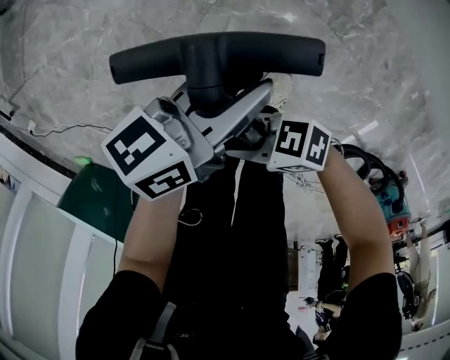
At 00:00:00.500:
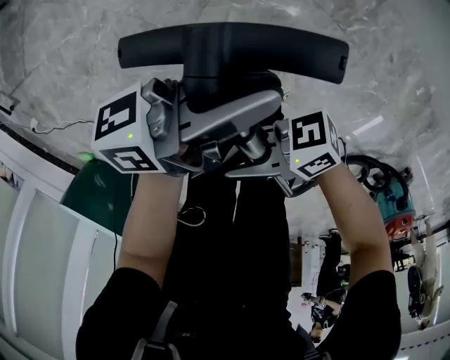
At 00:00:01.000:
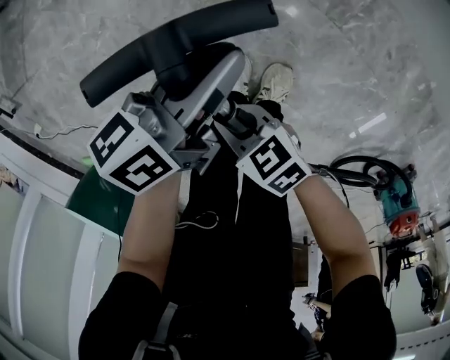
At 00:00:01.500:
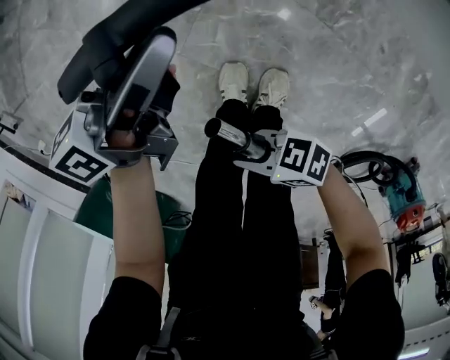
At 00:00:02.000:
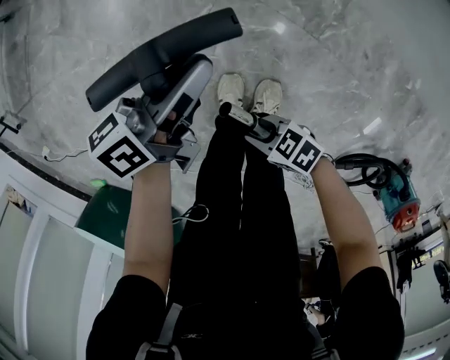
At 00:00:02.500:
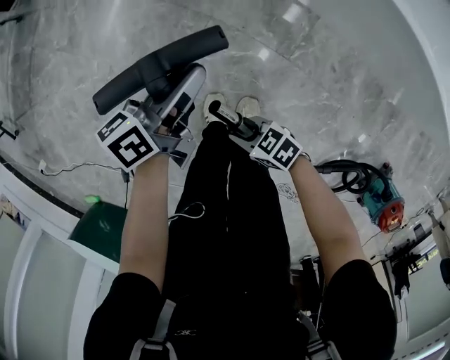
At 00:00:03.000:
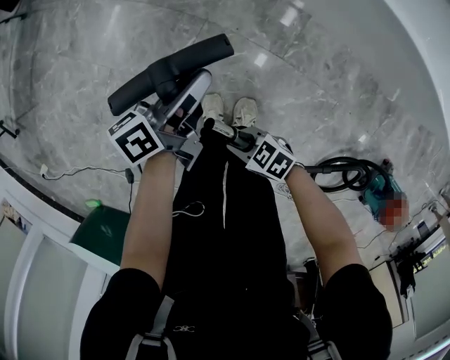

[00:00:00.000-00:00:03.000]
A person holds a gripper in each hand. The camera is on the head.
00:00:00.000 to 00:00:01.500: The left gripper moves up and down over some 5 cm, changing direction 2 times; the right gripper swings up and down, roughly 10 cm each way, with 2 reversals.
00:00:01.500 to 00:00:03.000: The right gripper changes place by about 10 cm, and turns by approximately 30 degrees, while the left gripper heads upward, covering about 10 cm.

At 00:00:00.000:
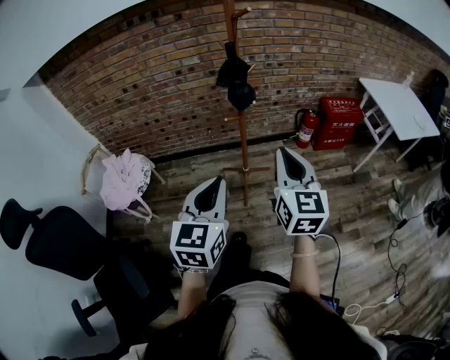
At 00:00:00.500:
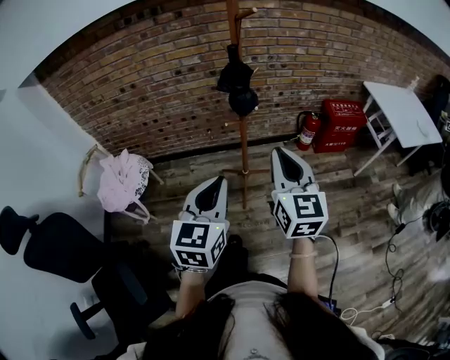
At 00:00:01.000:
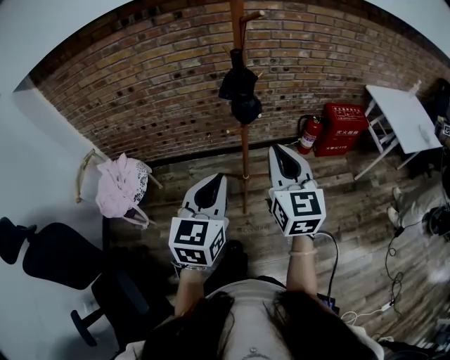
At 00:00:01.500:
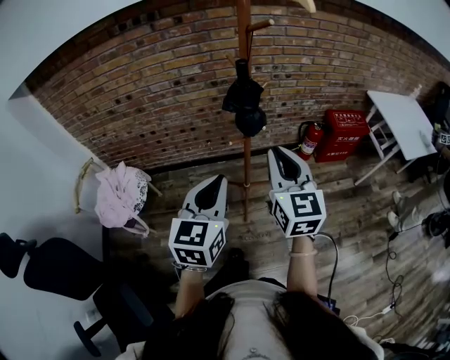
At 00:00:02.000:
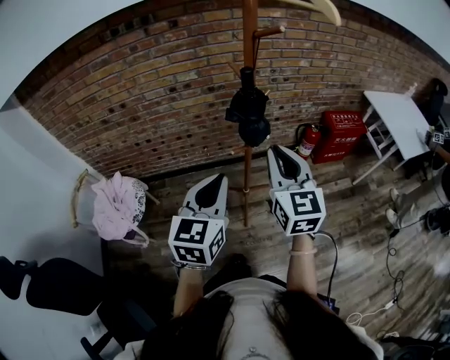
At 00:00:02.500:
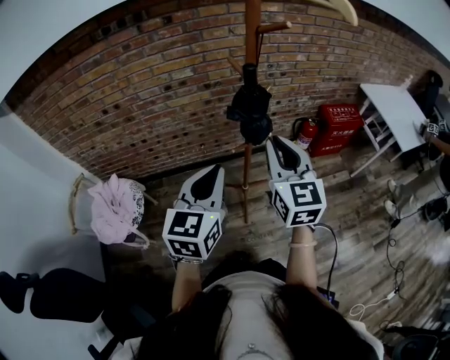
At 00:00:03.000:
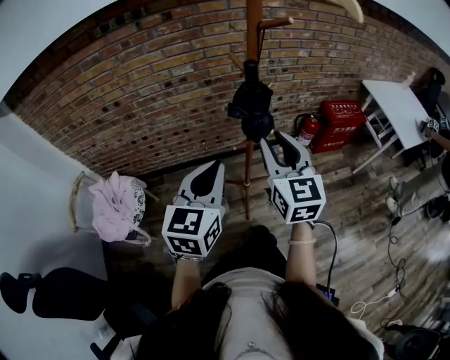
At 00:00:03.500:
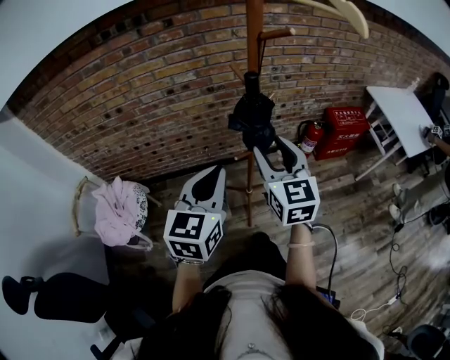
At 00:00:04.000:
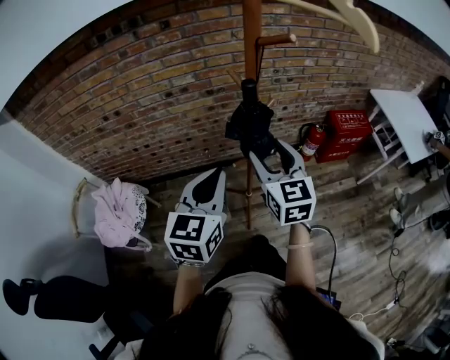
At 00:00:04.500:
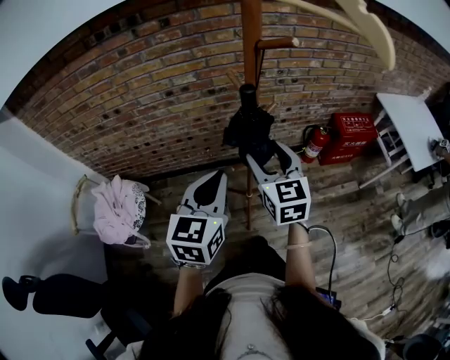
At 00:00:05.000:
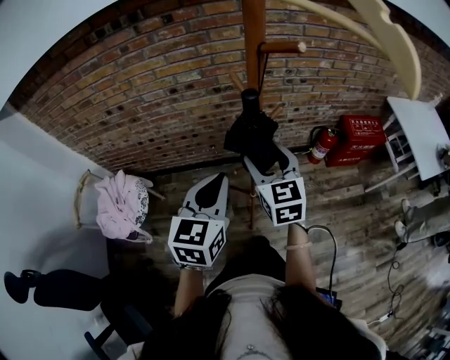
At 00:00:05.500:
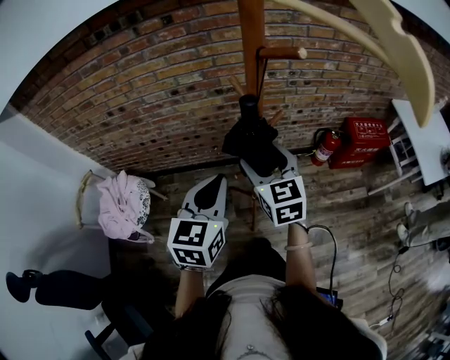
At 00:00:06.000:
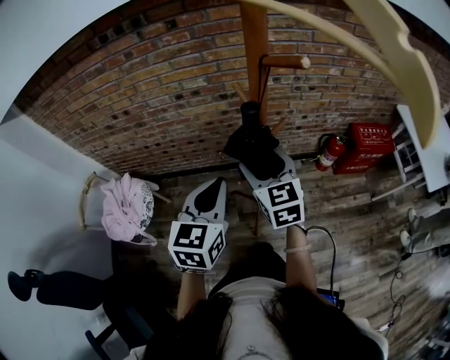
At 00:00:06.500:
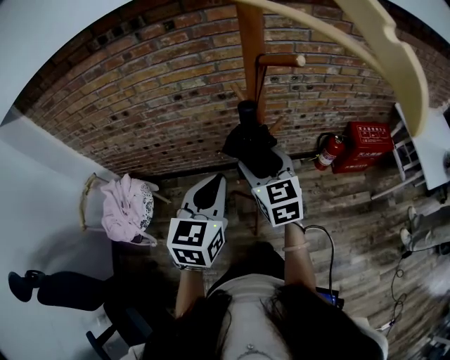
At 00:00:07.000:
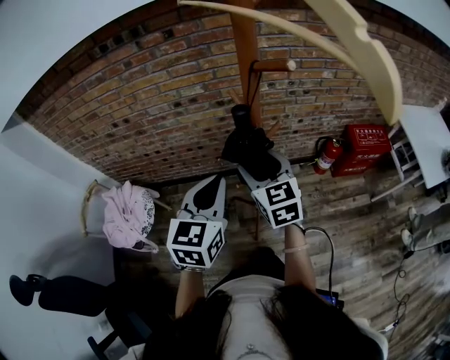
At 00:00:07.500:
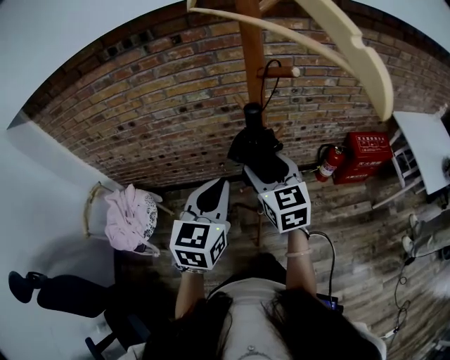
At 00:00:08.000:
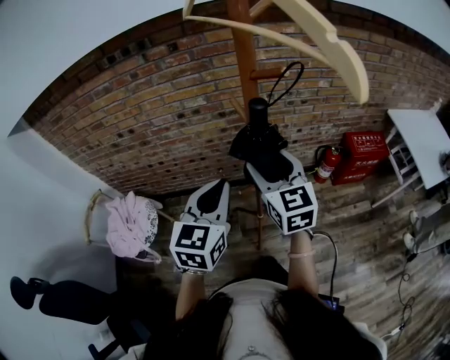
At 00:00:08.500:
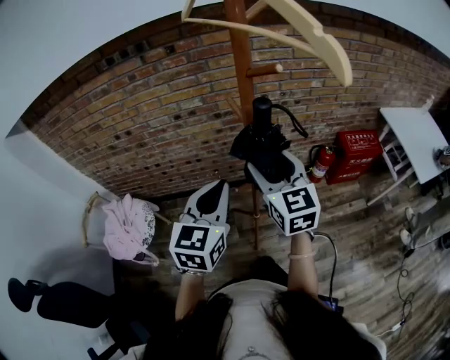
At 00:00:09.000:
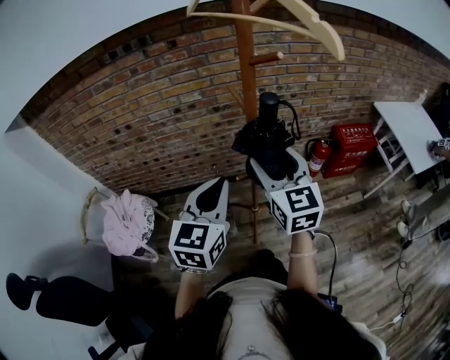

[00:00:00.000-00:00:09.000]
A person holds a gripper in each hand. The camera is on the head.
00:00:00.000 to 00:00:02.000: The right gripper is displaced forward and to the left by about 20 cm; the left gripper moves forward, roughly 20 cm.
00:00:02.000 to 00:00:04.500: The left gripper shifts approximately 10 cm forward; the right gripper goes about 15 cm forward and downward, and opens its fingers.
00:00:04.500 to 00:00:07.000: The right gripper moves forward, approximately 5 cm.
00:00:07.000 to 00:00:09.000: The left gripper travels backward by approximately 10 cm, while the right gripper heads backward and upward, covering approximately 15 cm.

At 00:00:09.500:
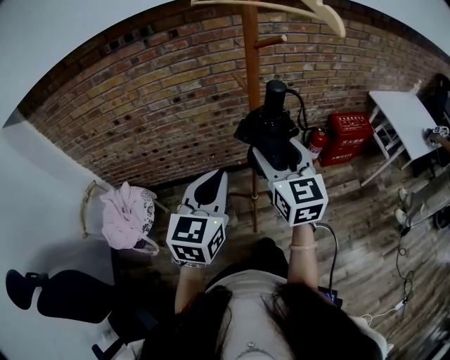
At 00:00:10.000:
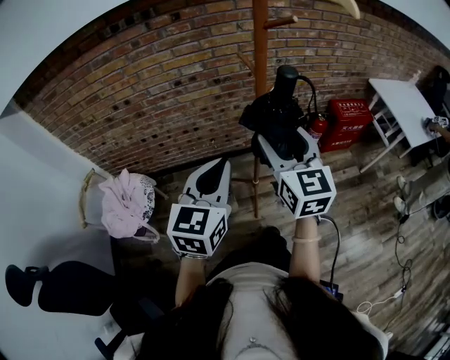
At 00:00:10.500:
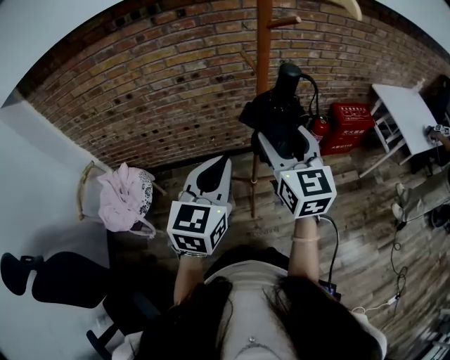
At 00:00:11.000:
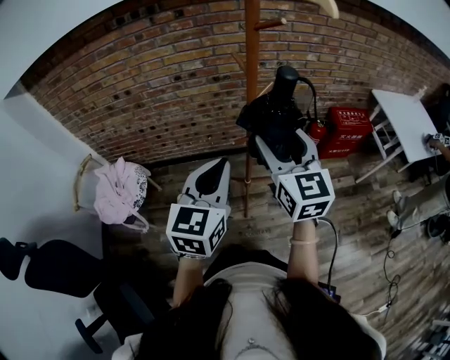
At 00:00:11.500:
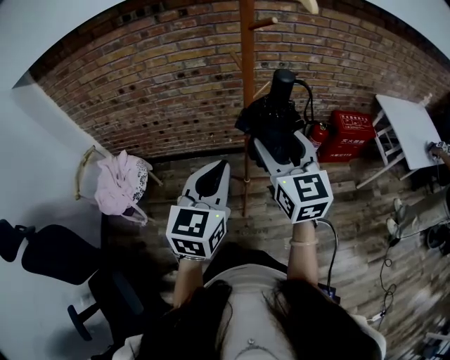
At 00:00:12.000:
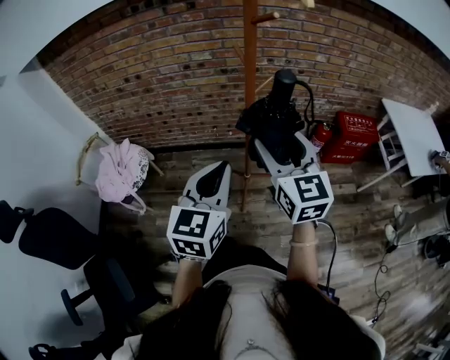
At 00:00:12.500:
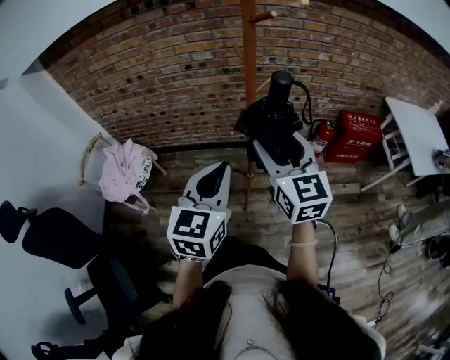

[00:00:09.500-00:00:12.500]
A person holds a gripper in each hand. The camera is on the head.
00:00:09.500 to 00:00:11.000: There are only small adjustments of the grippers.
00:00:11.000 to 00:00:12.500: The left gripper shifts by some 5 cm.

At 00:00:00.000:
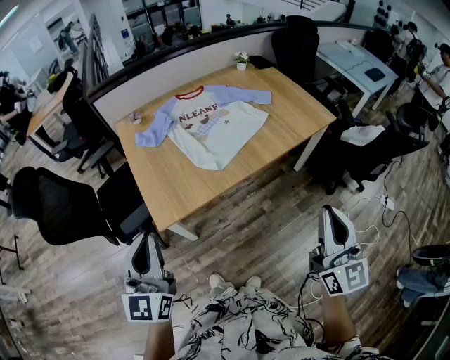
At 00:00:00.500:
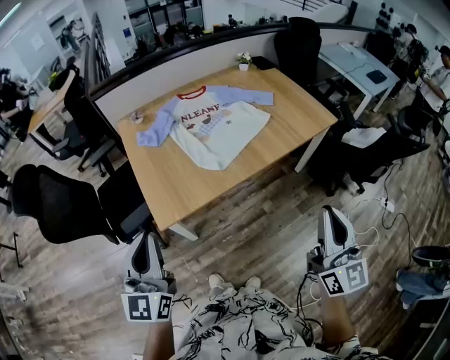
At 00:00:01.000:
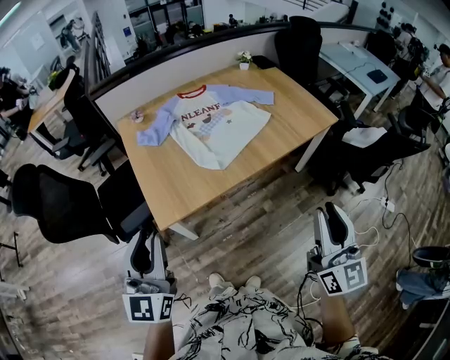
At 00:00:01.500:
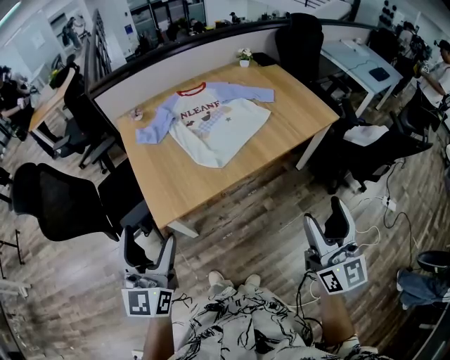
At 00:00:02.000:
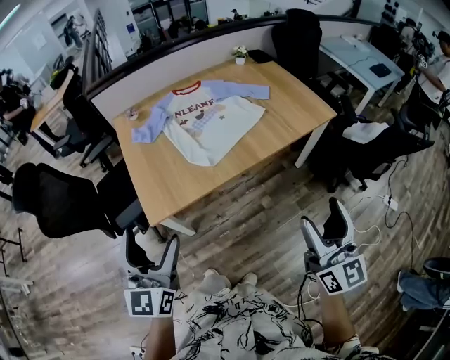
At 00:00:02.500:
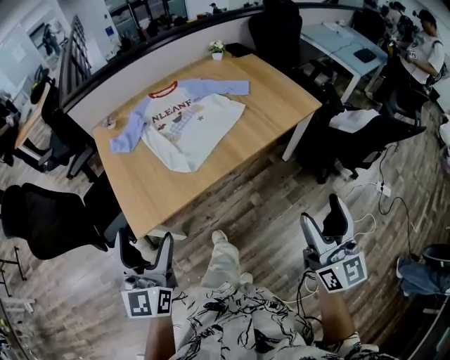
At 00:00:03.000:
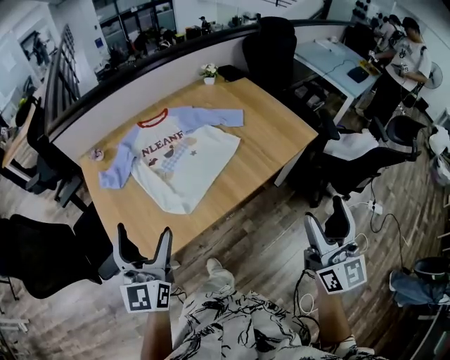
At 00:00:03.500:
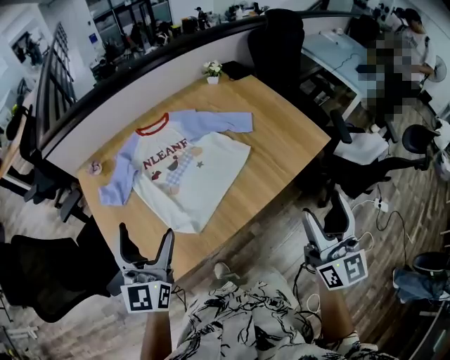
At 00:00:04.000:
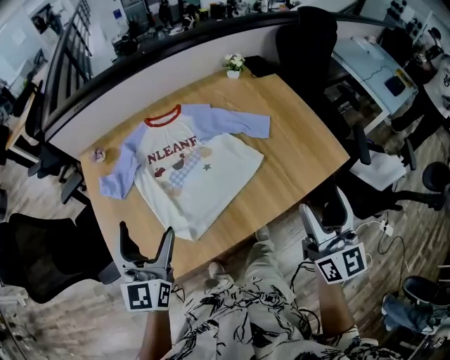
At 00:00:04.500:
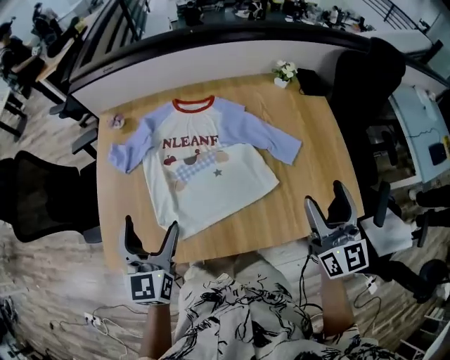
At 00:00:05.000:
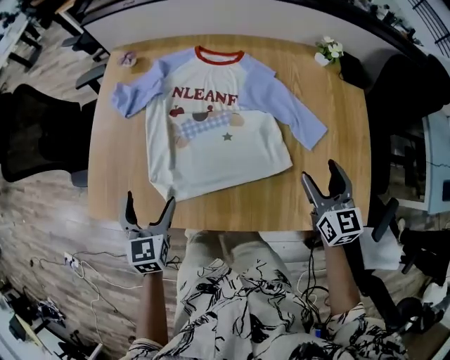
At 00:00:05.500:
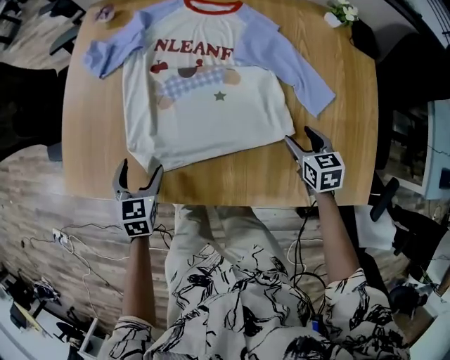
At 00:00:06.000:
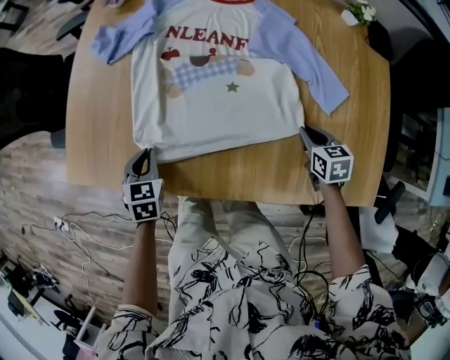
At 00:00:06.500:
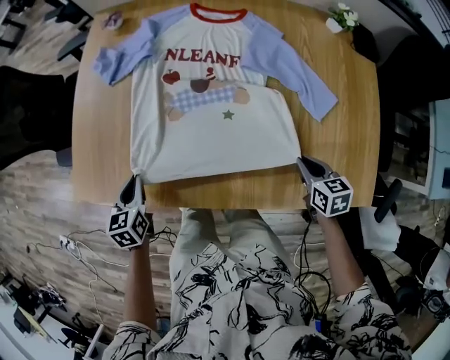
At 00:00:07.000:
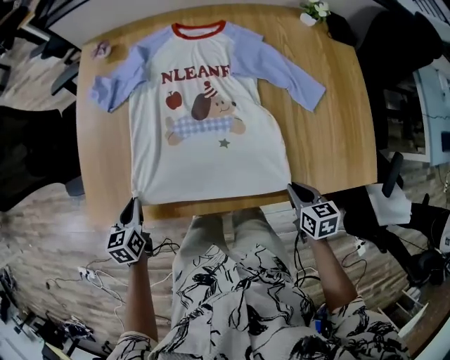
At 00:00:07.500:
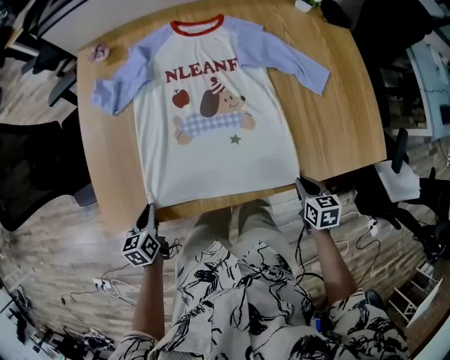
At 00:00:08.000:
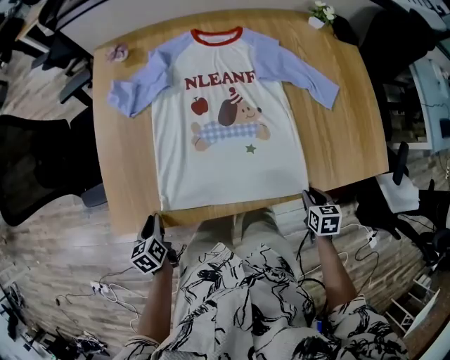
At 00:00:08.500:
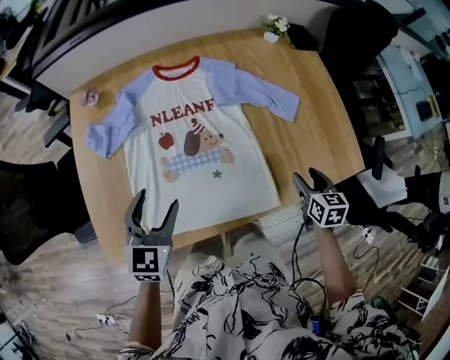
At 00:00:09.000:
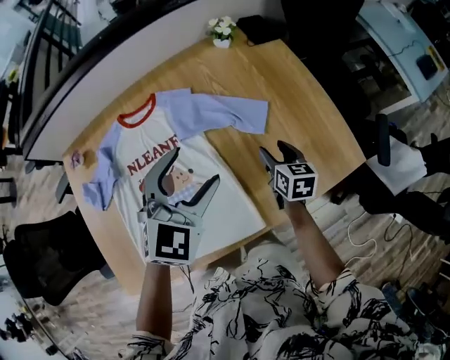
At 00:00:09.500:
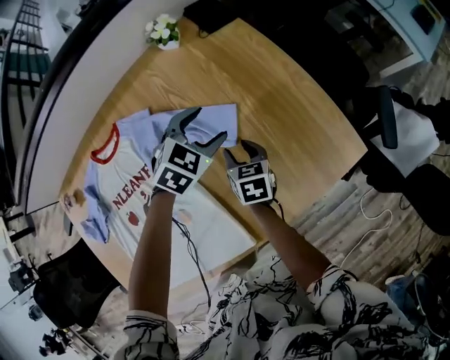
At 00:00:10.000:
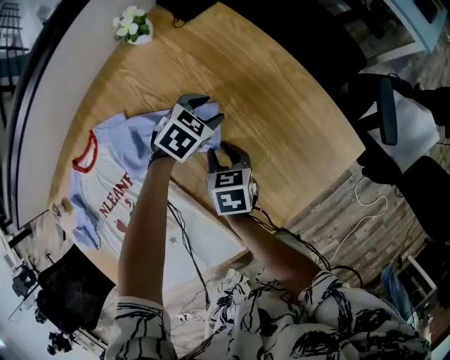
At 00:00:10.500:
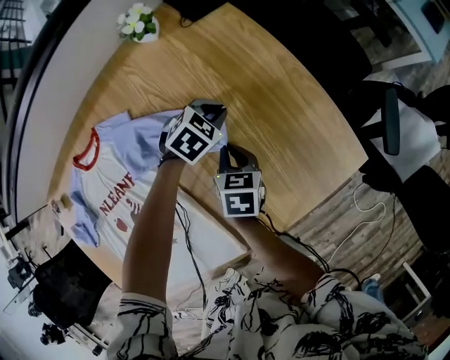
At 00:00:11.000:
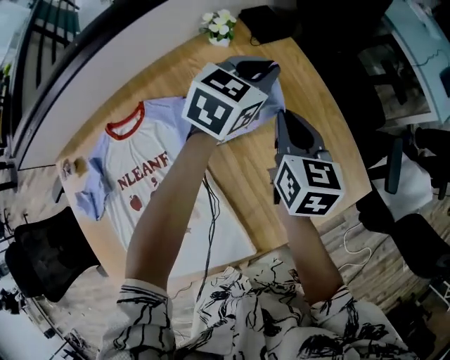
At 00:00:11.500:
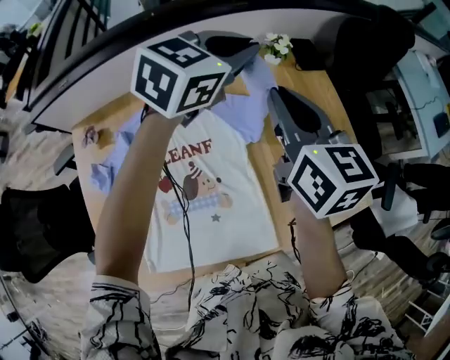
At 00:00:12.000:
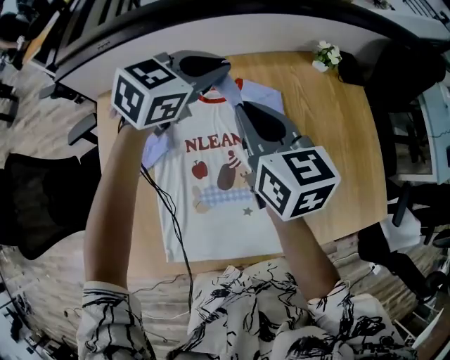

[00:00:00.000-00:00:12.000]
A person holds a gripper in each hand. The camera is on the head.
00:00:00.000 to 00:00:02.000: The right gripper opens up. The left gripper moves to the right, some 5 cm, and opens.
00:00:02.000 to 00:00:04.000: The two grippers go about 40 cm forward.
00:00:04.000 to 00:00:06.000: Both grippers travel together downward, approximately 40 cm. The right gripper tips its fingers downward by about 60 degrees, and closes up; the left gripper tips its fingers downward by approximately 50 degrees, and closes its fingers.
00:00:06.000 to 00:00:08.000: The right gripper travels backward and to the left by some 20 cm, and rotates approximately 30 degrees. The left gripper shifts about 20 cm to the left, and changes its angle by roughly 30 degrees.
00:00:08.000 to 00:00:10.000: The right gripper travels upward and back again, about 10 cm each way, and turns by some 30 degrees. Meanwhile the left gripper goes upward and returns, roughly 30 cm each way, and rotates around the line of its fingers by some 90 degrees, clockwise from behind.
00:00:10.000 to 00:00:12.000: The left gripper moves approximately 60 cm, tips its fingers upward by roughly 30 degrees, and closes up. Meanwhile the right gripper shifts by about 50 cm, and points its fingers roughly 30 degrees further upward.
